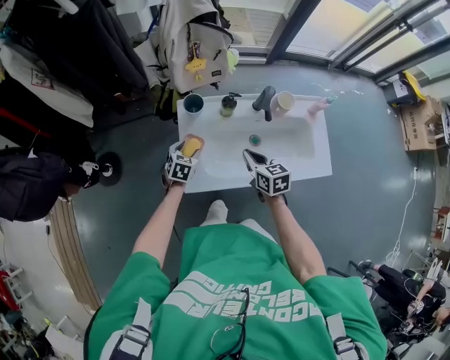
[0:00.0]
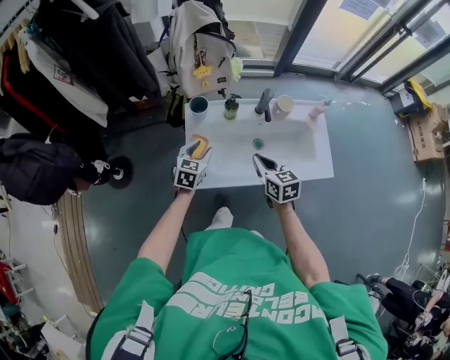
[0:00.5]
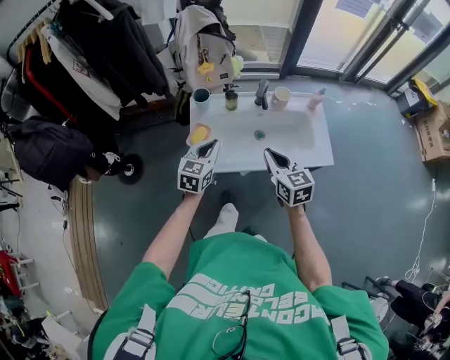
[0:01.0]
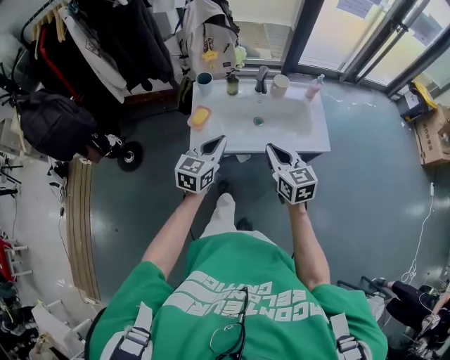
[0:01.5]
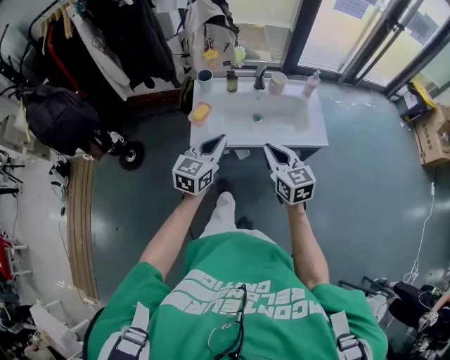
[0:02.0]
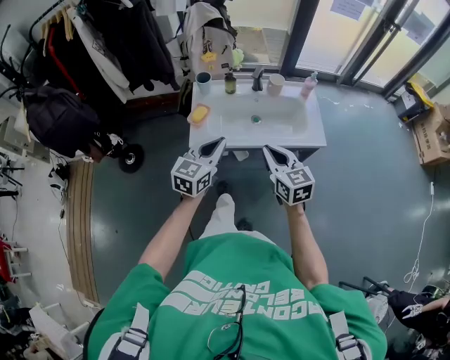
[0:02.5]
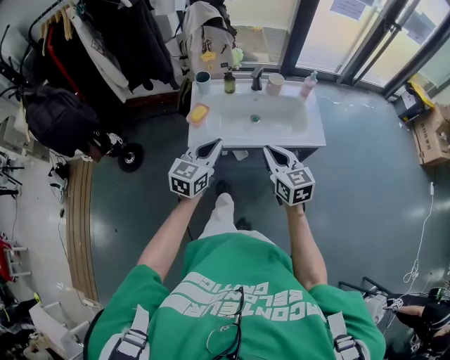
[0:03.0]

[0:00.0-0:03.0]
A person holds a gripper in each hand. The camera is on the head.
0:00.0 to 0:01.5: The left gripper heads upward, backward and to the right, covering roughly 35 cm, points its fingers about 30 degrees further upward, and closes its fingers, while the right gripper shifts approximately 25 cm backward and upward, and turns by approximately 20 degrees.
0:01.5 to 0:03.0: The grippers both shift backward by about 5 cm.

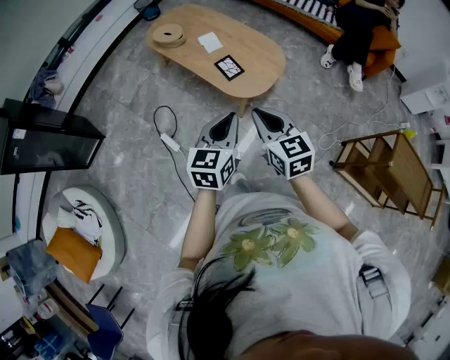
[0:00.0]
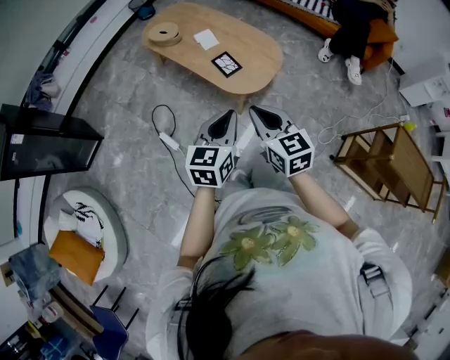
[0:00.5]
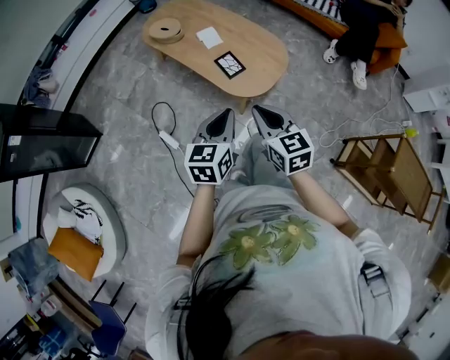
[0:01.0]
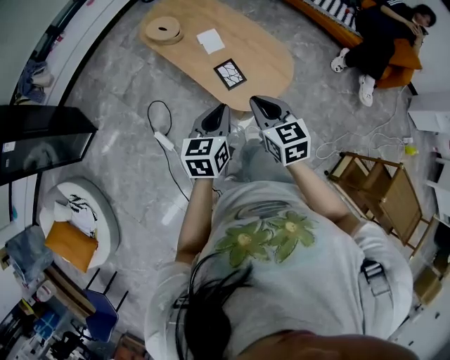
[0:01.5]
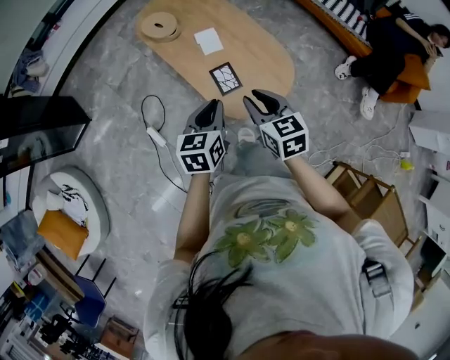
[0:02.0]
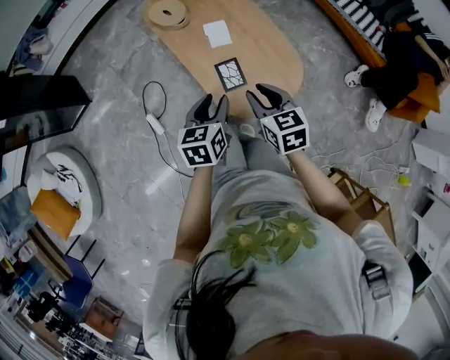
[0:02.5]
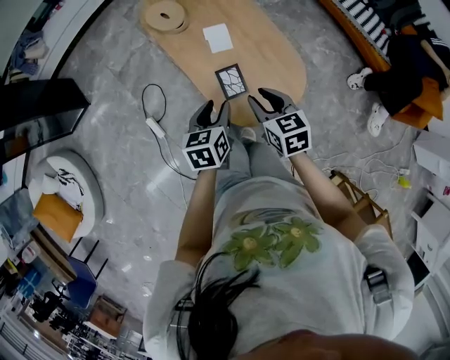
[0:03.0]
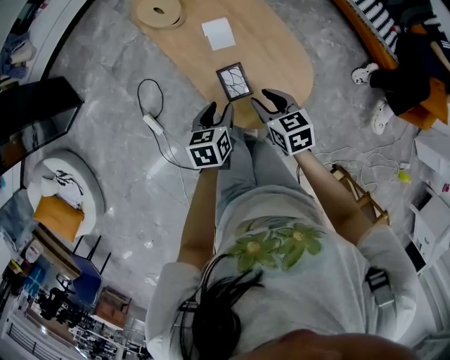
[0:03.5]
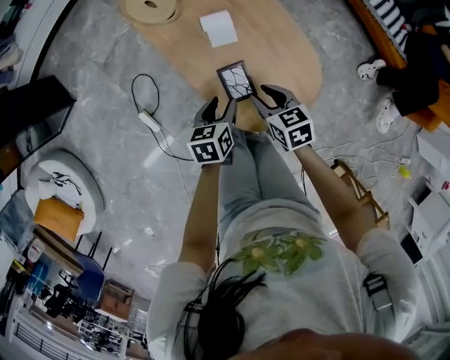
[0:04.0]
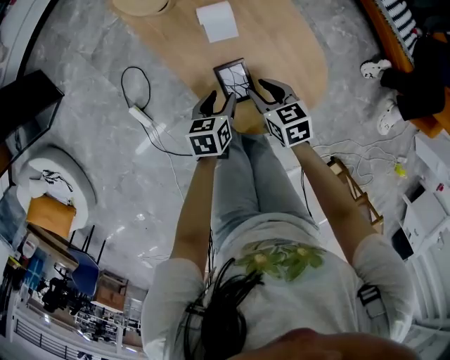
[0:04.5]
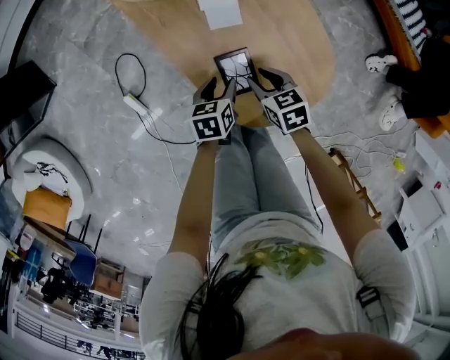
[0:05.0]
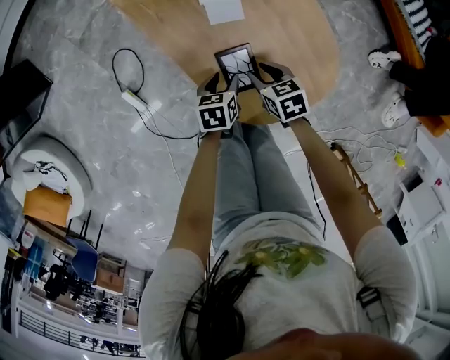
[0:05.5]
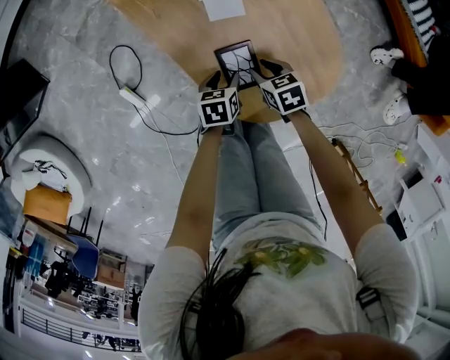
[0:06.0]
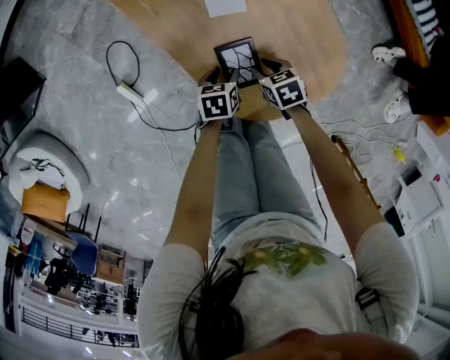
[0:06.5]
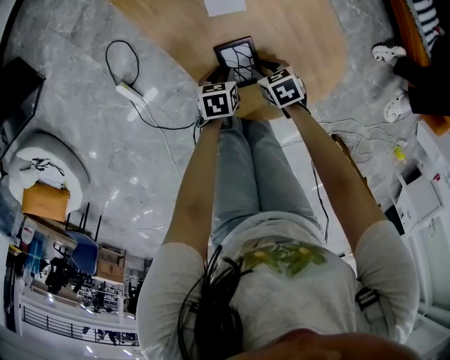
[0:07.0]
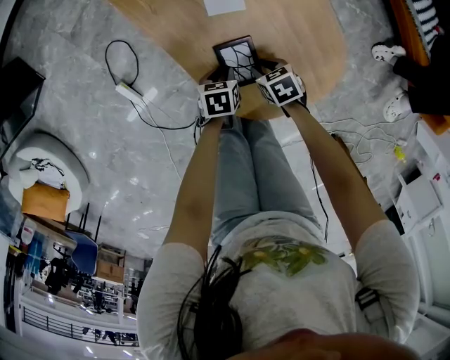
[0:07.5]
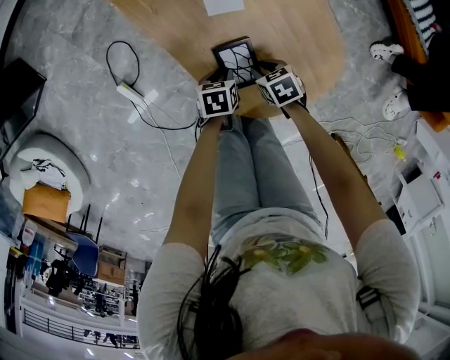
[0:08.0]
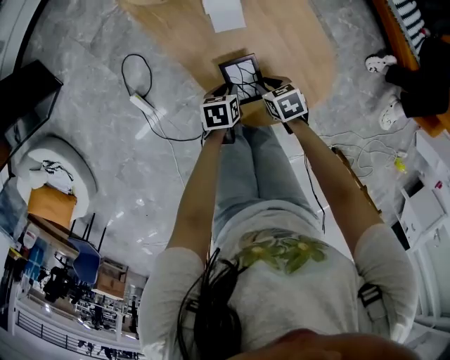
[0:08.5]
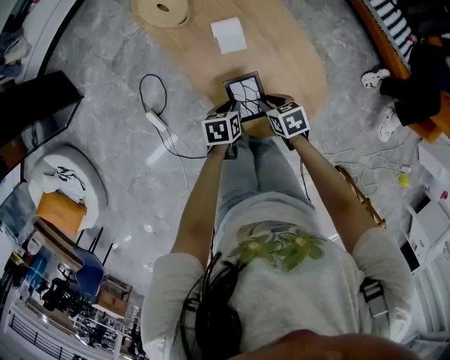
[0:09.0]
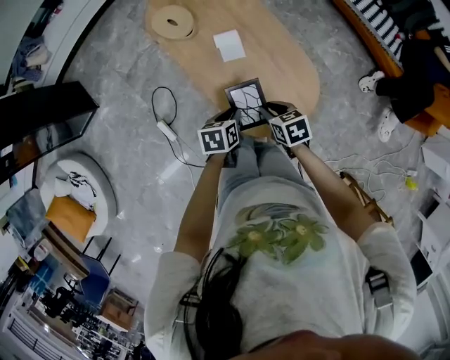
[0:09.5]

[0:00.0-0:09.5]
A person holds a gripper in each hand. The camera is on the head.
0:00.0 to 0:02.0: The two grippers go roughly 25 cm forward. The left gripper turns by about 20 degrees.
0:02.0 to 0:04.0: The two grippers go about 25 cm downward and forward. The right gripper turns by some 20 degrees; the left gripper turns by approximately 20 degrees, and opens up.
0:04.0 to 0:05.5: The grippers both shift downward by about 15 cm.
0:05.5 to 0:07.5: The two grippers go roughly 5 cm downward. The left gripper closes.
0:07.5 to 0:09.5: Both grippers move upward, about 25 cm. The right gripper changes its angle by some 20 degrees.

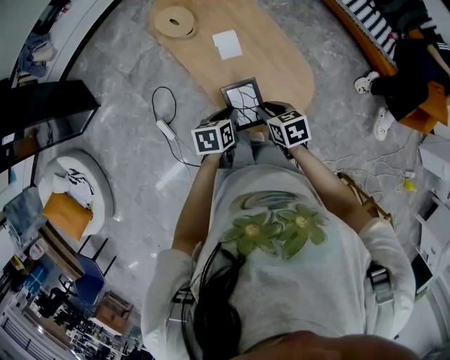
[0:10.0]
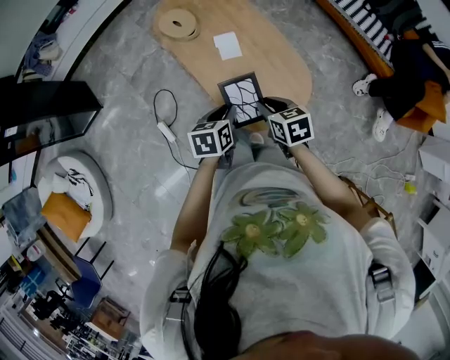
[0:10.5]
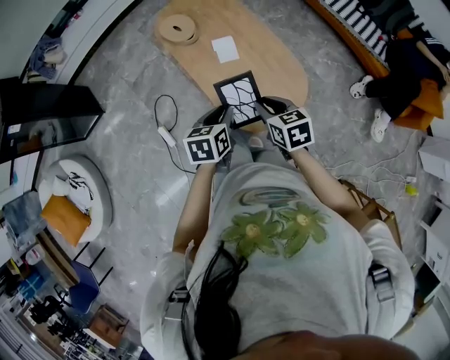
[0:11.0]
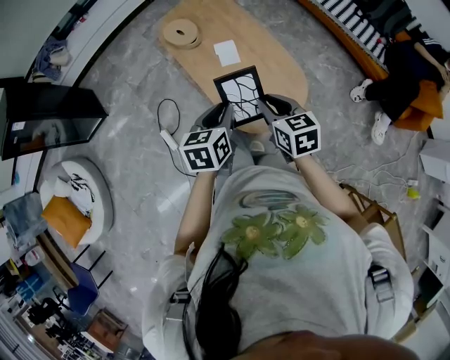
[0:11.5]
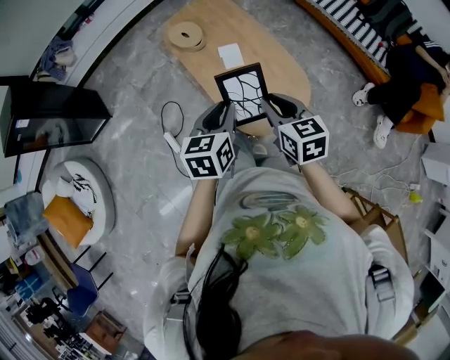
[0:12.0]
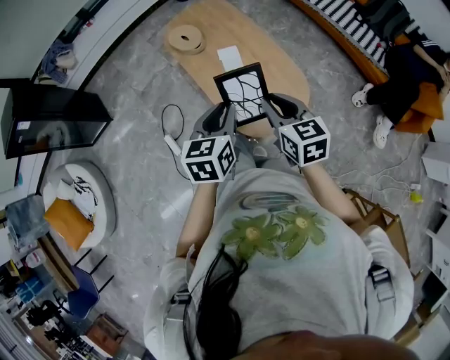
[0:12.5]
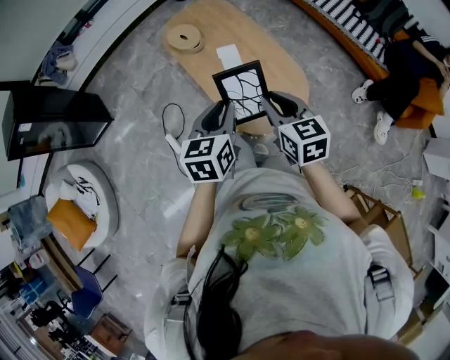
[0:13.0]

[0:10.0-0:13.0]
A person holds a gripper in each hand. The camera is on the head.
0:10.0 to 0:11.5: The grippers both shift upward by roughly 15 cm. The left gripper rotates some 20 degrees; the right gripper turns by roughly 20 degrees.
0:11.5 to 0:13.0: The two grippers go roughly 5 cm upward.

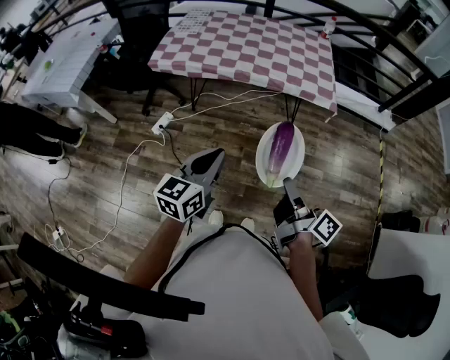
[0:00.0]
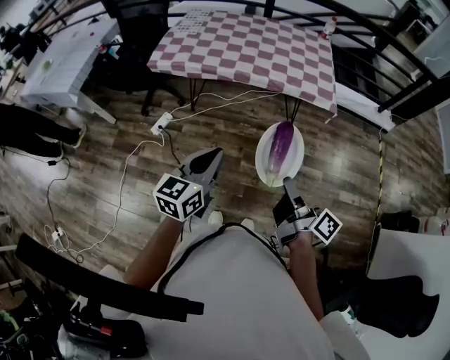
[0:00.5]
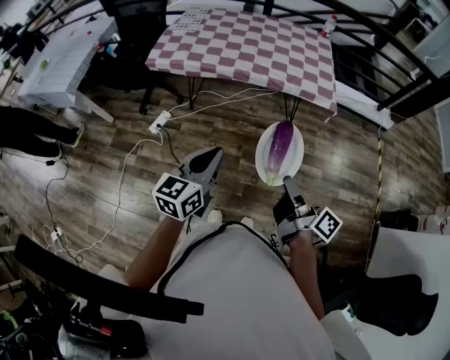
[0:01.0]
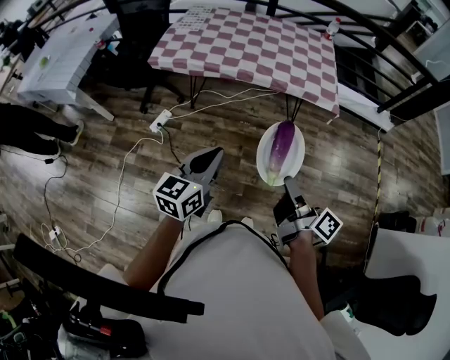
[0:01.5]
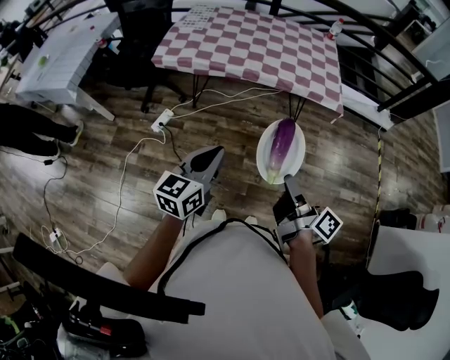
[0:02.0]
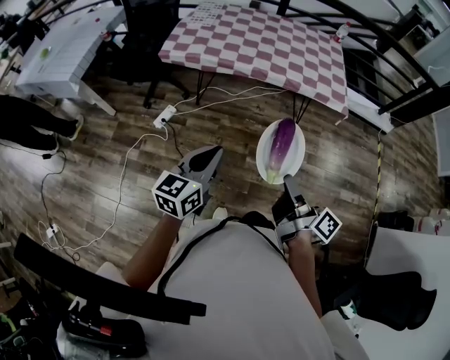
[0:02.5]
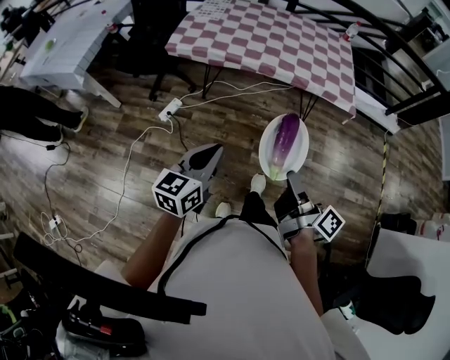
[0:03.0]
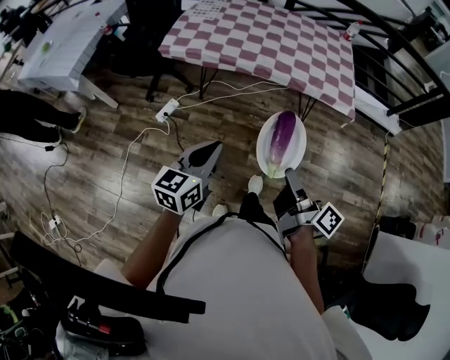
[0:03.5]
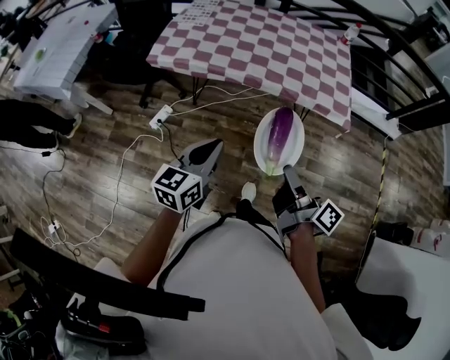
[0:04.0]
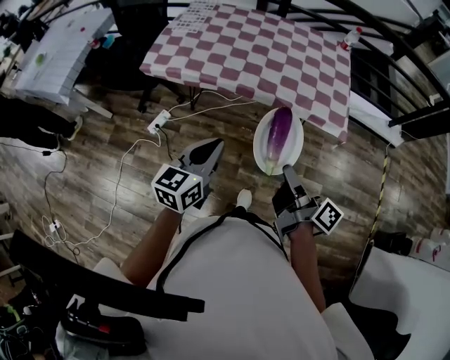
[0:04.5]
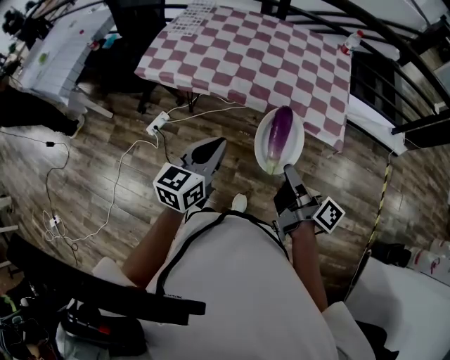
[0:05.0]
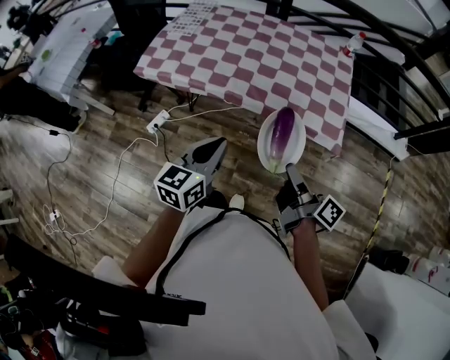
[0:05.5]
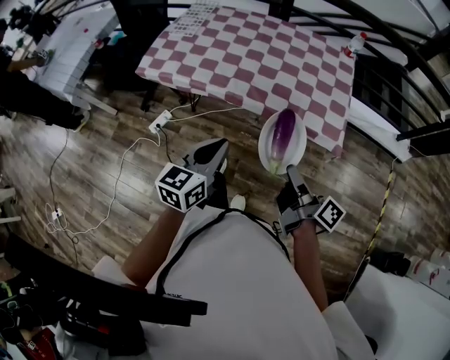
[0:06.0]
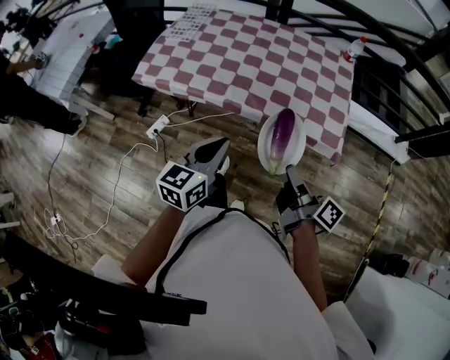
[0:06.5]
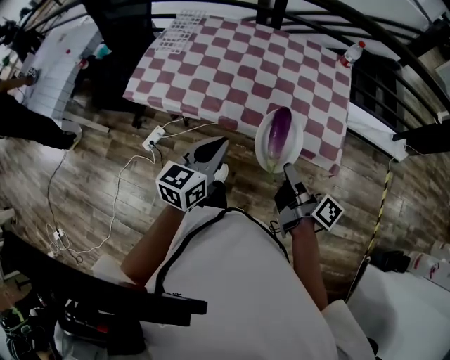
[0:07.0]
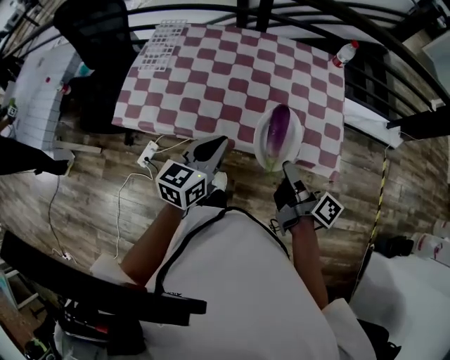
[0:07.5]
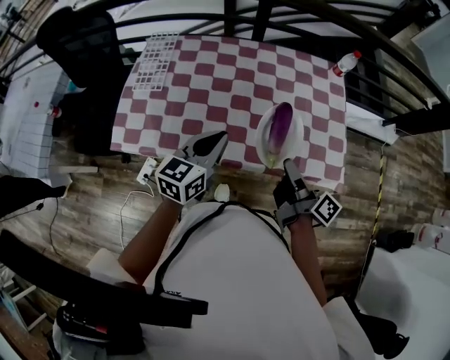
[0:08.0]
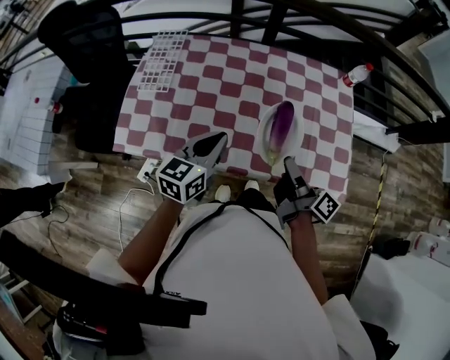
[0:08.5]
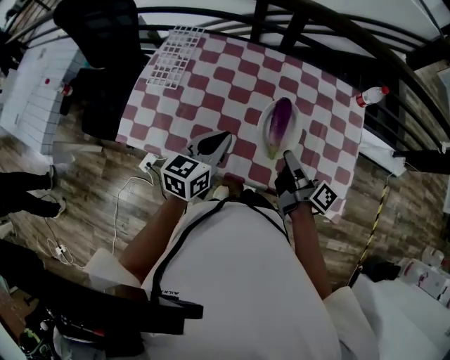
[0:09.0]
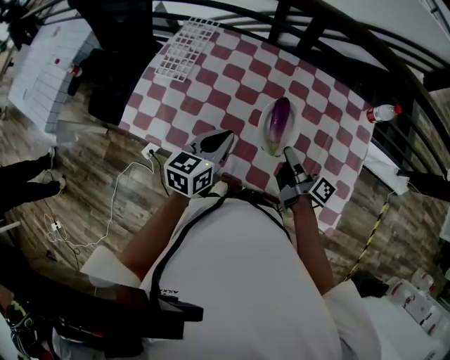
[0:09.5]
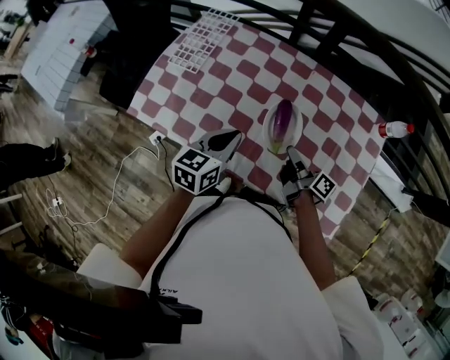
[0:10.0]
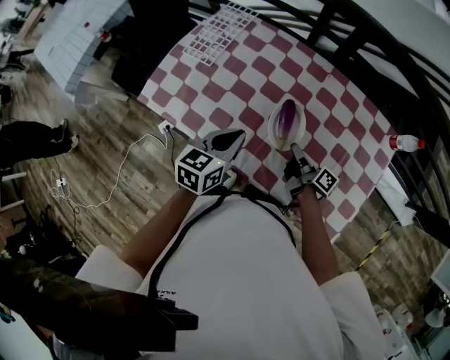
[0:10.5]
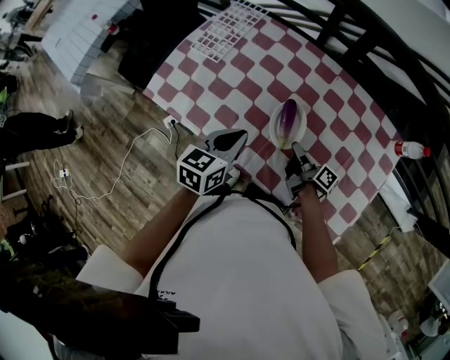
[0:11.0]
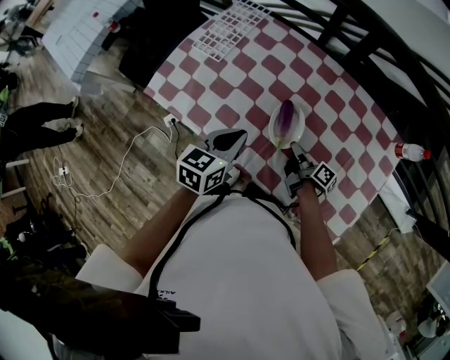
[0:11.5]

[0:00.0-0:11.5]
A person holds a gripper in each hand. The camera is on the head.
0:00.0 to 0:02.0: The left gripper changes place by roughly 5 cm.
0:02.0 to 0:04.0: The left gripper moves some 15 cm.
0:04.0 to 0:06.0: The left gripper ends up roughly 20 cm from where it was.
0:06.0 to 0:07.5: The left gripper changes place by some 25 cm.
0:07.5 to 0:09.5: The left gripper ends up approximately 20 cm from where it was.
